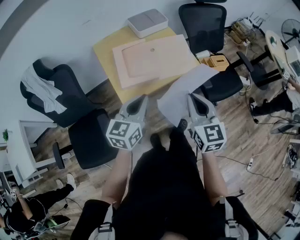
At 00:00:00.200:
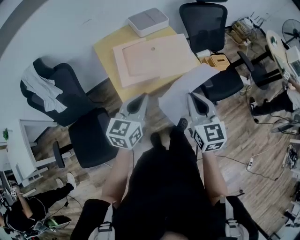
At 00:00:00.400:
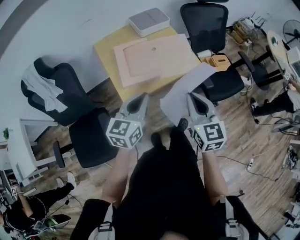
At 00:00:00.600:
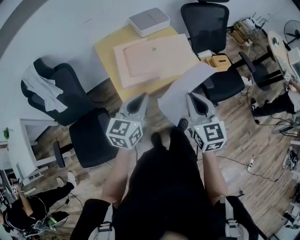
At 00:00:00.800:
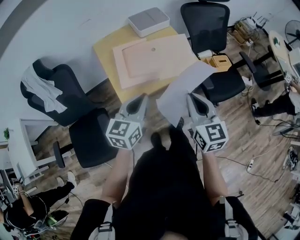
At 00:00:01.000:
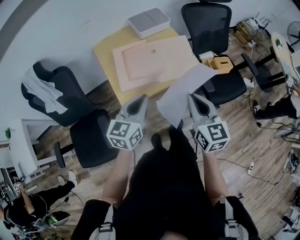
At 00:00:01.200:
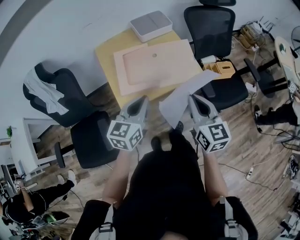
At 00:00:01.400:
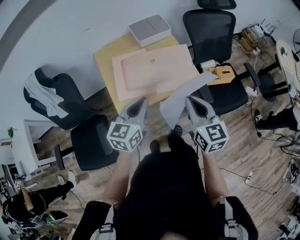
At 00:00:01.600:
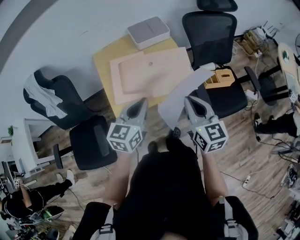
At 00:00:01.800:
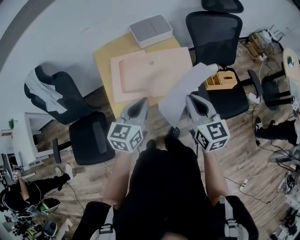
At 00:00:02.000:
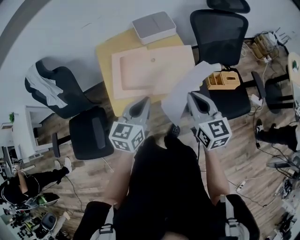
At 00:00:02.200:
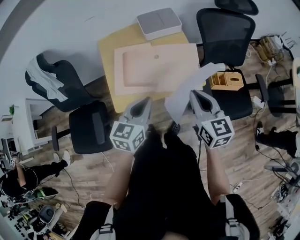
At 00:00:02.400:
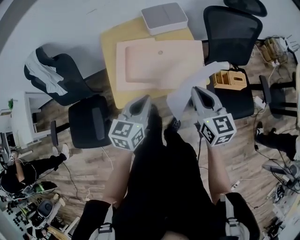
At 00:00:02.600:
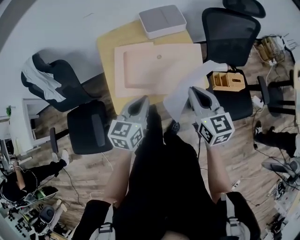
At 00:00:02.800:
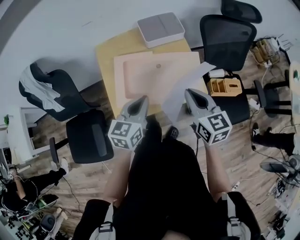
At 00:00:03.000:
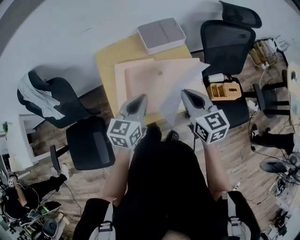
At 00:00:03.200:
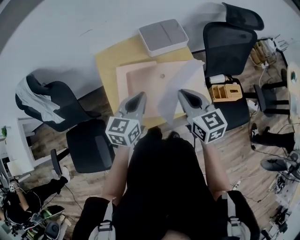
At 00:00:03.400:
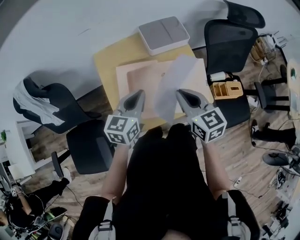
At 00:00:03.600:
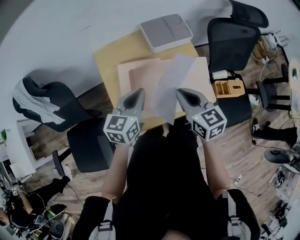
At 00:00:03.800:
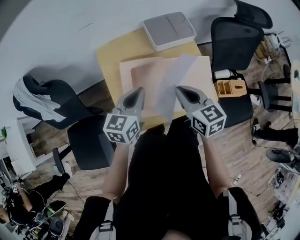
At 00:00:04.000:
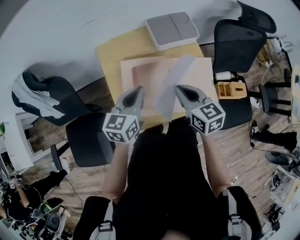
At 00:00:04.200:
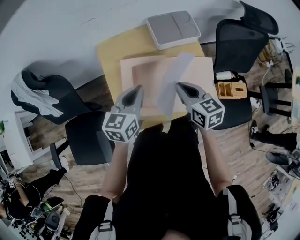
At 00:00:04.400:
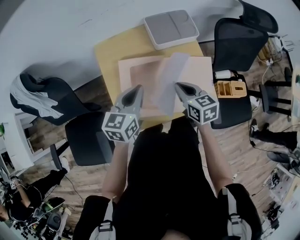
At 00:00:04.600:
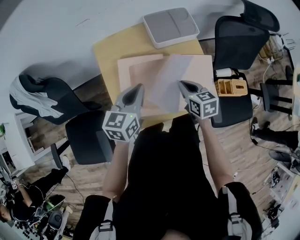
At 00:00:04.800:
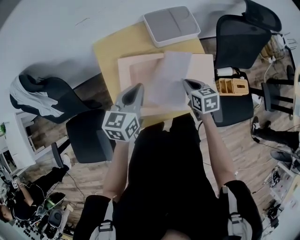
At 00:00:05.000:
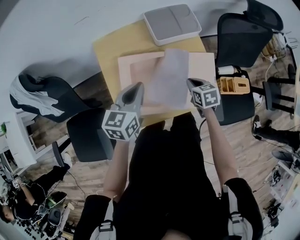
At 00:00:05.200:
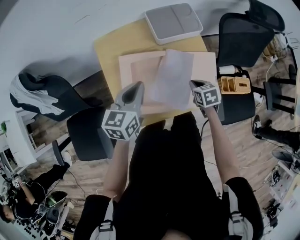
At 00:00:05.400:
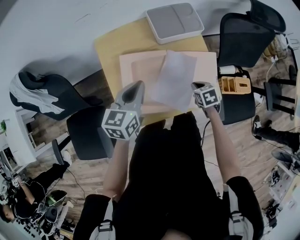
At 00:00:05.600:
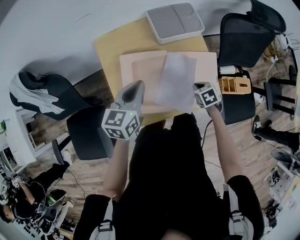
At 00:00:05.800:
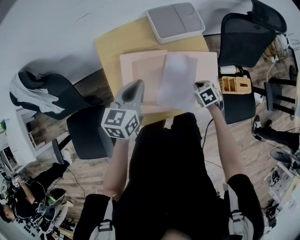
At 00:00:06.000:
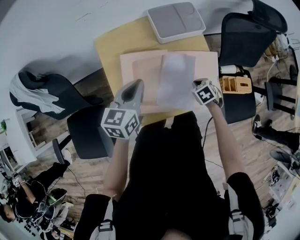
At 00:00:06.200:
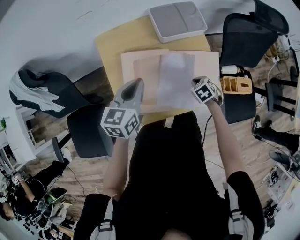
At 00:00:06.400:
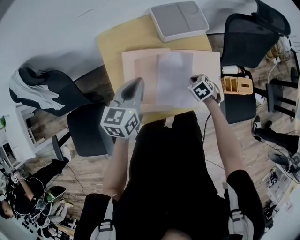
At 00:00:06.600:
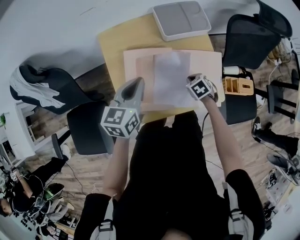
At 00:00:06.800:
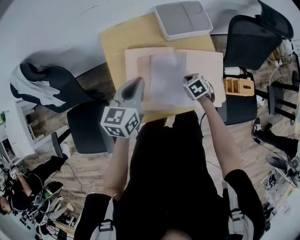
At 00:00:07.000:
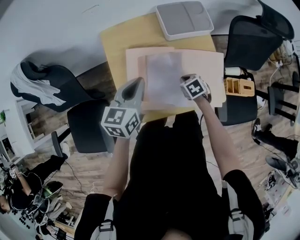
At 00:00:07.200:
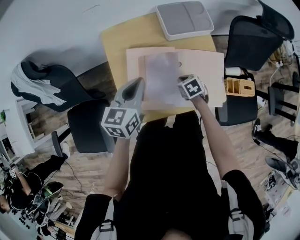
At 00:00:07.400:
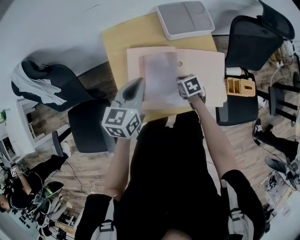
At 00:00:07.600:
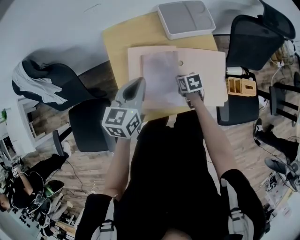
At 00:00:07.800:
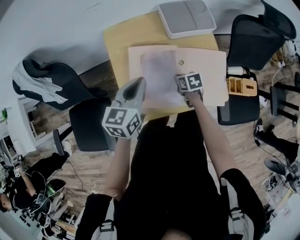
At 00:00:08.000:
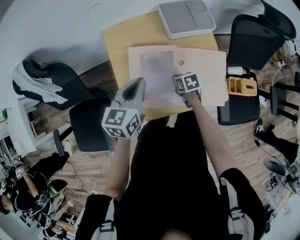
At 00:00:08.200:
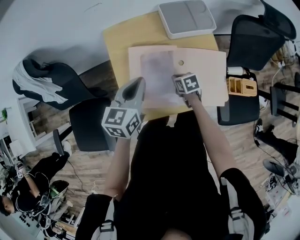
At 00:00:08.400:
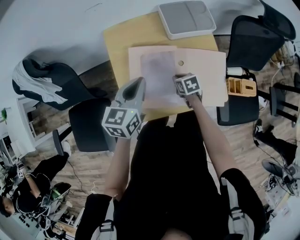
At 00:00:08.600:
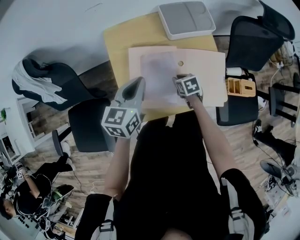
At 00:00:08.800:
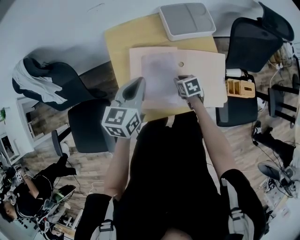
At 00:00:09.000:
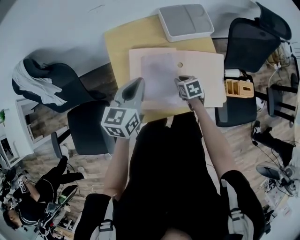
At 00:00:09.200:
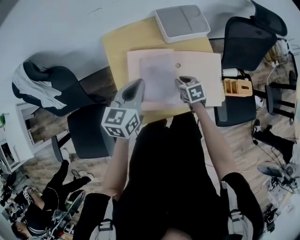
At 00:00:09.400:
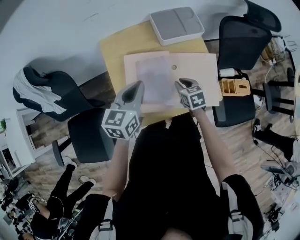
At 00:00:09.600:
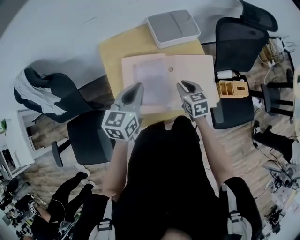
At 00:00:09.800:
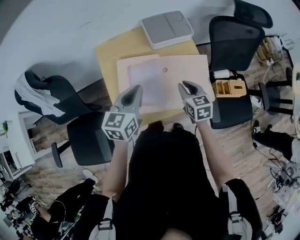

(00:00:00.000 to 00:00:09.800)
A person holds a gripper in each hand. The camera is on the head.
00:00:00.000 - 00:00:01.400: Both grippers travel together forward, some 10 cm.
00:00:01.400 - 00:00:02.800: Both grippers travel together forward, approximately 15 cm.
00:00:02.800 - 00:00:04.200: The right gripper goes some 20 cm forward, to the left and downward. Meanwhile the left gripper goes about 15 cm forward and to the left.
00:00:04.200 - 00:00:05.600: The right gripper is displaced downward and to the right by some 25 cm, and tilts its fingers some 40 degrees downward.
00:00:05.600 - 00:00:07.000: The right gripper goes about 10 cm to the left.
00:00:08.400 - 00:00:09.800: The right gripper goes some 20 cm upward and to the right, and turns by about 30 degrees, while the left gripper moves to the right, roughly 5 cm.

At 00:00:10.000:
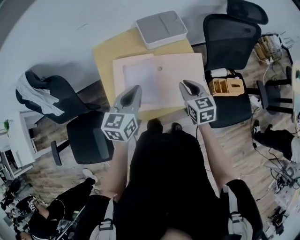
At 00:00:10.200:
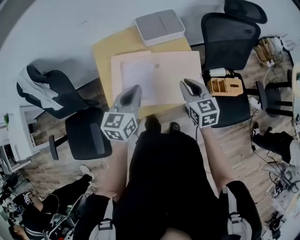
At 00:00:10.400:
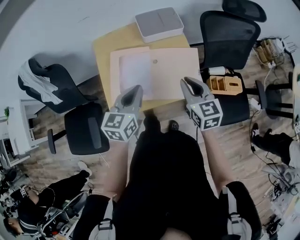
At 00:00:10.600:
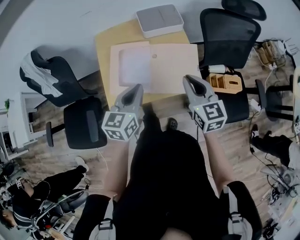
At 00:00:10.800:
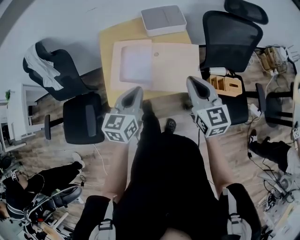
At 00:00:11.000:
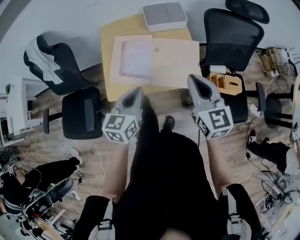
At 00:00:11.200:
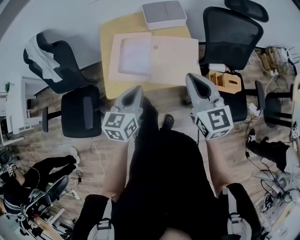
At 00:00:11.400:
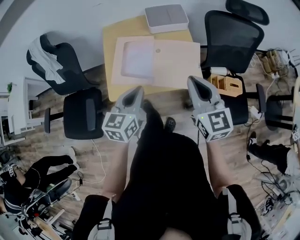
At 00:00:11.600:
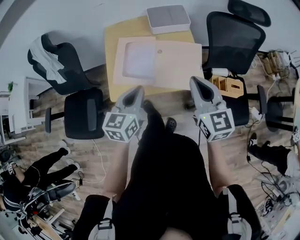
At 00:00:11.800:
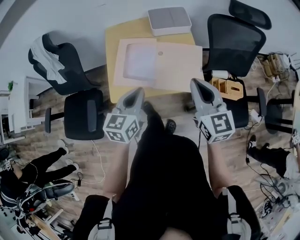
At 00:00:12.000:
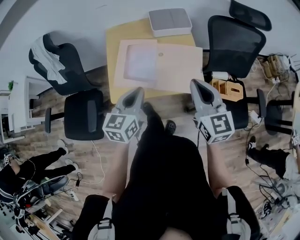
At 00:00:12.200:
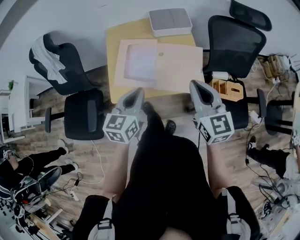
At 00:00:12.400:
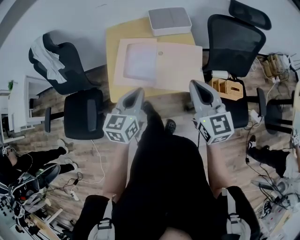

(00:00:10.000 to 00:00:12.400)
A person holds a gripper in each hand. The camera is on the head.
00:00:10.000 - 00:00:11.200: The right gripper moves upward and backward, about 20 cm, and swivels roughly 30 degrees, while the left gripper is displaced backward by roughly 20 cm.
00:00:11.200 - 00:00:12.400: The grippers make only small movements.

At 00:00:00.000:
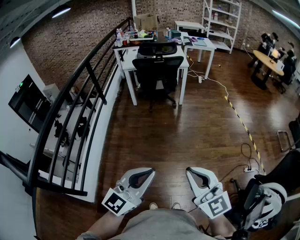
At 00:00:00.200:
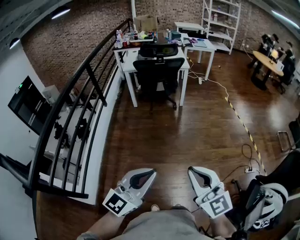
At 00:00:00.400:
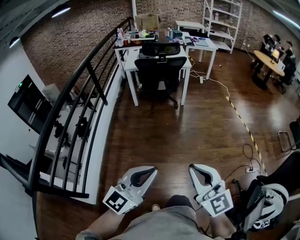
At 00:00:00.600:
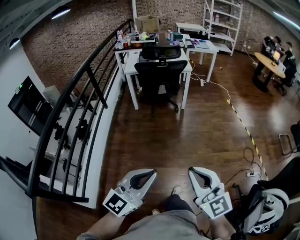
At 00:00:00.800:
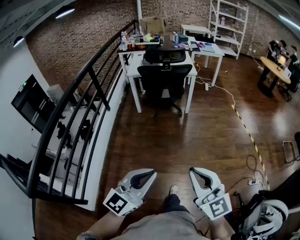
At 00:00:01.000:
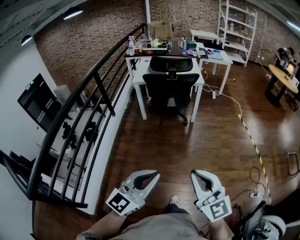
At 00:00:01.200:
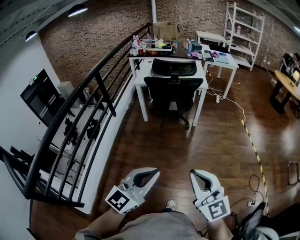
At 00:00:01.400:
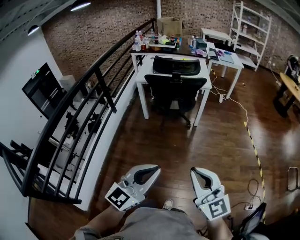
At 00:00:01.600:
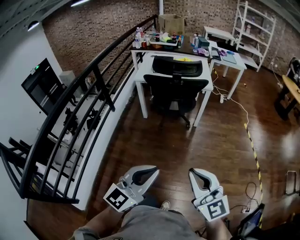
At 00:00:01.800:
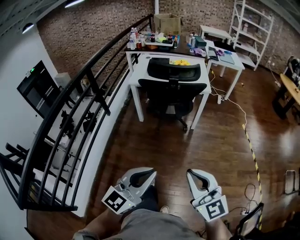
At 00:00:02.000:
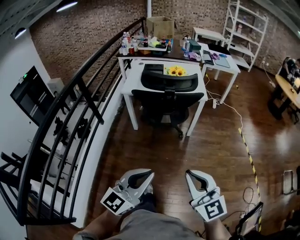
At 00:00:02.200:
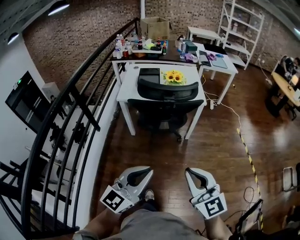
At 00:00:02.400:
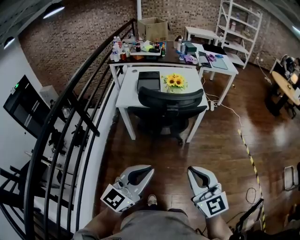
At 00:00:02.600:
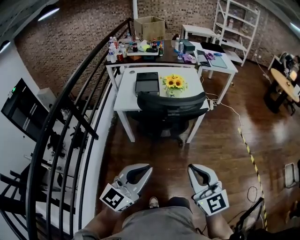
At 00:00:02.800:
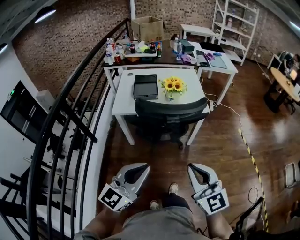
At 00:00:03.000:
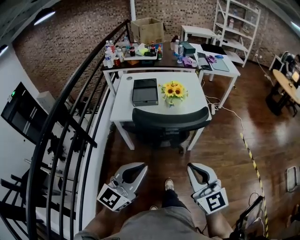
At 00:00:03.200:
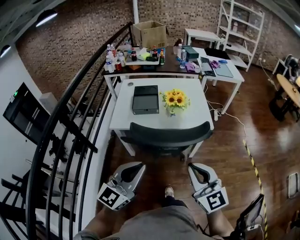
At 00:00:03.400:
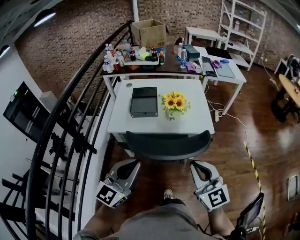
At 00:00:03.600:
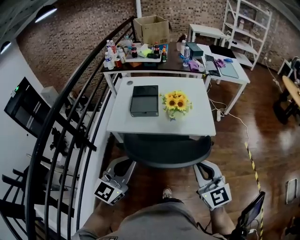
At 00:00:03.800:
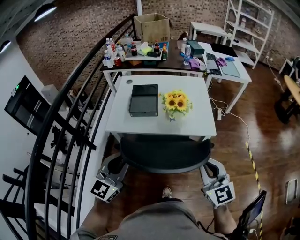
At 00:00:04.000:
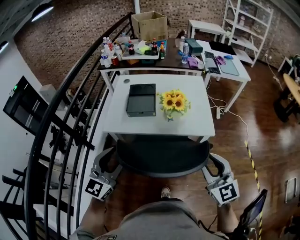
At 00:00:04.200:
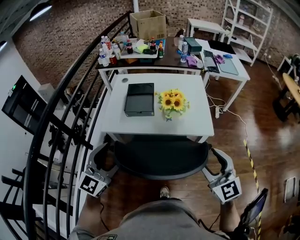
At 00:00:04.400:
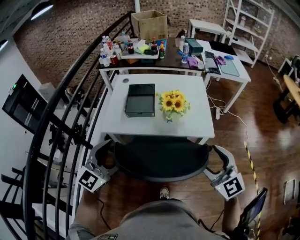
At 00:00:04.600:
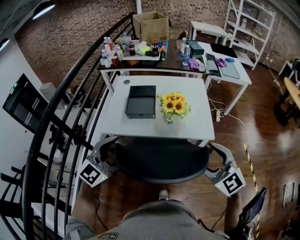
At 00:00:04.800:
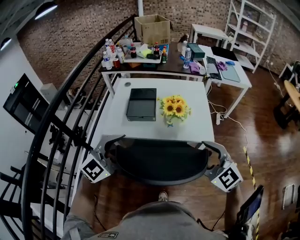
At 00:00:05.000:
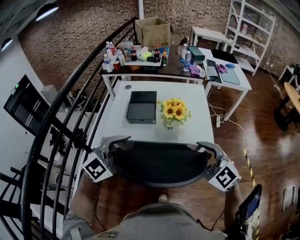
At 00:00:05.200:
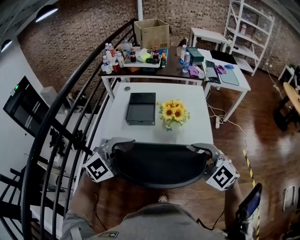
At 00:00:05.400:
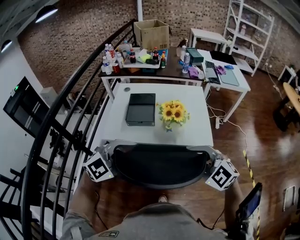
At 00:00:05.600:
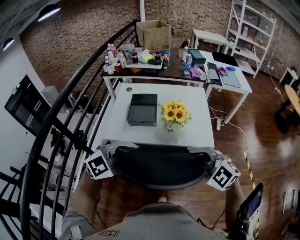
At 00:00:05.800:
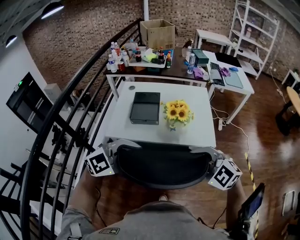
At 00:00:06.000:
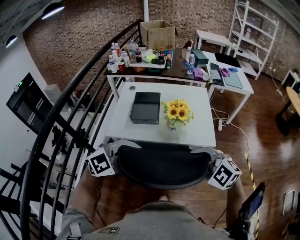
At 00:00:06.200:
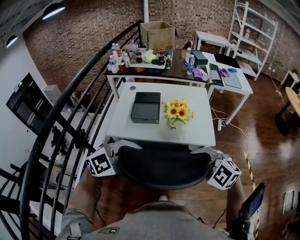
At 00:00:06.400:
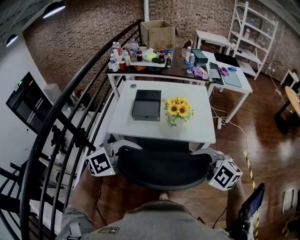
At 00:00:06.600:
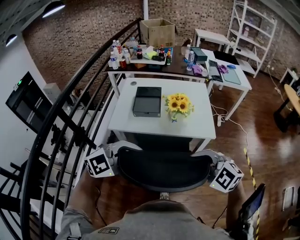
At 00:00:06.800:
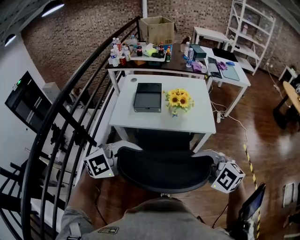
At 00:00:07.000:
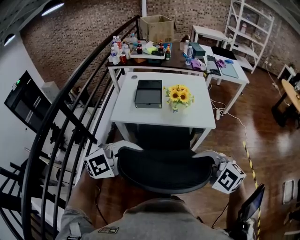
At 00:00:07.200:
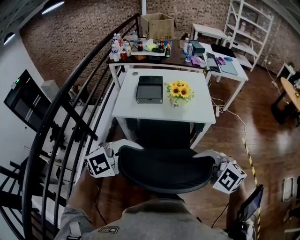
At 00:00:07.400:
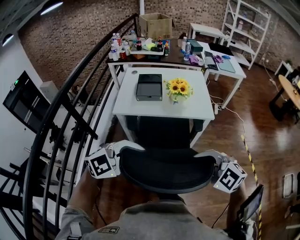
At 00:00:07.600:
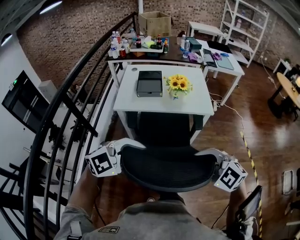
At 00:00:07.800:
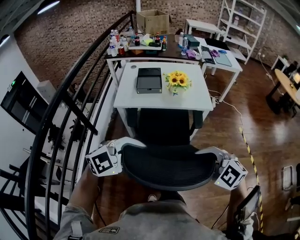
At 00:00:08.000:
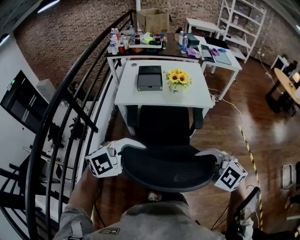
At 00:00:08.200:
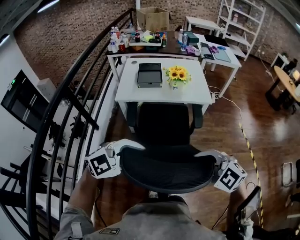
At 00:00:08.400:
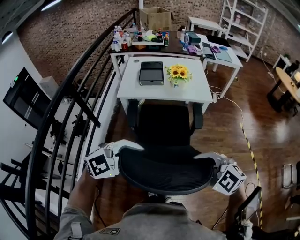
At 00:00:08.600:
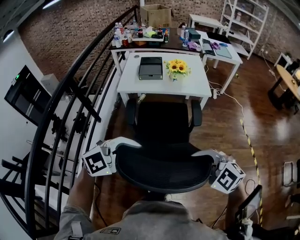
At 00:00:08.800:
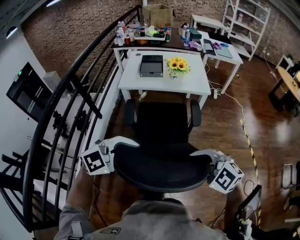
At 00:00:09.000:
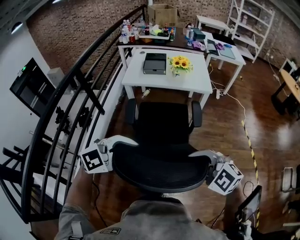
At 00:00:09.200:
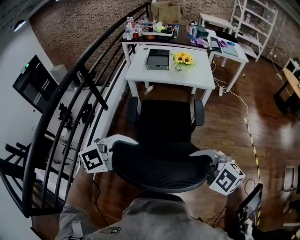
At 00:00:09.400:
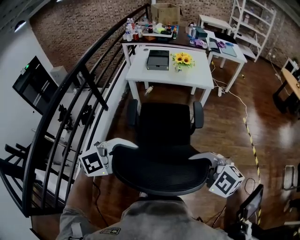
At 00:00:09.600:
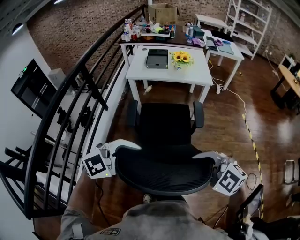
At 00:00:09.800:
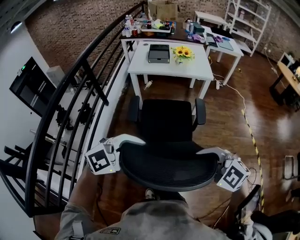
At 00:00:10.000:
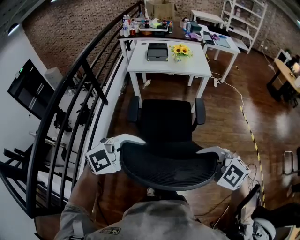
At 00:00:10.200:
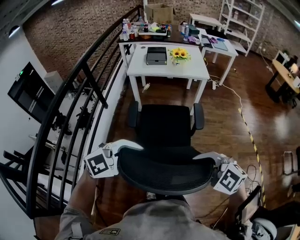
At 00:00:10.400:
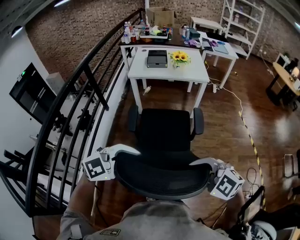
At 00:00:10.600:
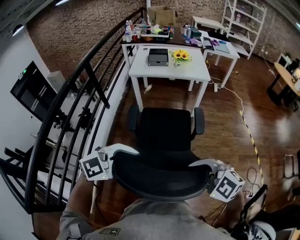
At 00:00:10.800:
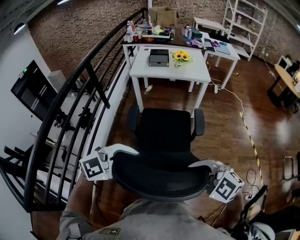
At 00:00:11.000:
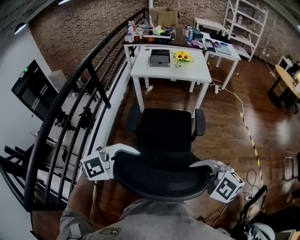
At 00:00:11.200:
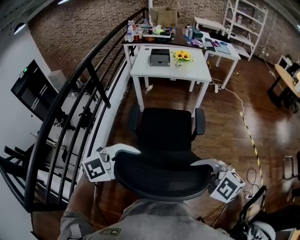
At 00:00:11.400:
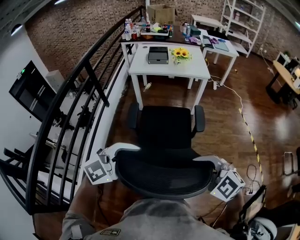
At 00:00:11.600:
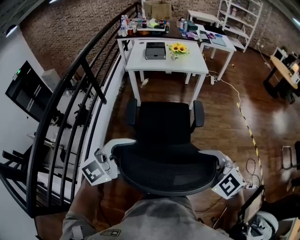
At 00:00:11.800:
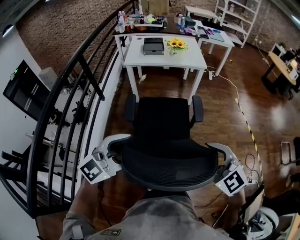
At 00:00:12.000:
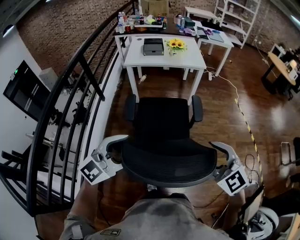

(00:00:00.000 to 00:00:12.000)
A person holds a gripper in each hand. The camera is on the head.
00:00:00.000 - 00:00:01.600: Both grippers travel together forward, some 35 cm.
00:00:01.600 - 00:00:03.000: The two grippers travel together, forward, some 40 cm.
00:00:03.000 - 00:00:04.400: The left gripper moves forward, some 20 cm, and opens. The right gripper moves forward and to the right, roughly 25 cm, and opens.
00:00:04.400 - 00:00:06.000: The left gripper heads to the right, covering approximately 5 cm, changes its angle by approximately 30 degrees, and closes up. The right gripper travels to the left by some 5 cm, changes its angle by approximately 40 degrees, and closes.
00:00:06.000 - 00:00:07.600: The right gripper ends up about 25 cm from where it was. The left gripper shifts by some 20 cm.
00:00:07.600 - 00:00:09.000: The right gripper ends up roughly 20 cm from where it was. The left gripper shifts by roughly 20 cm.
00:00:09.000 - 00:00:10.400: The right gripper changes place by roughly 20 cm. Meanwhile the left gripper moves roughly 20 cm.
00:00:10.400 - 00:00:12.000: The left gripper rotates approximately 20 degrees, and opens its fingers, while the right gripper swivels about 30 degrees, and opens up.
